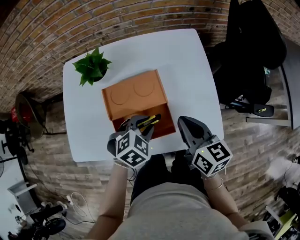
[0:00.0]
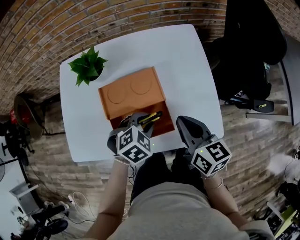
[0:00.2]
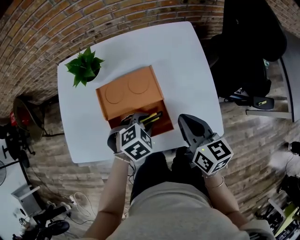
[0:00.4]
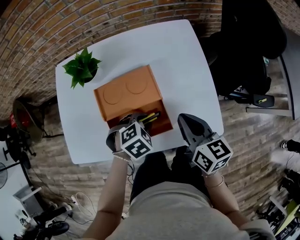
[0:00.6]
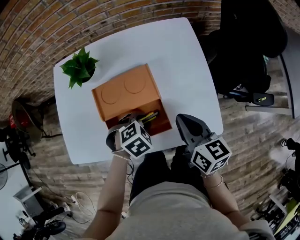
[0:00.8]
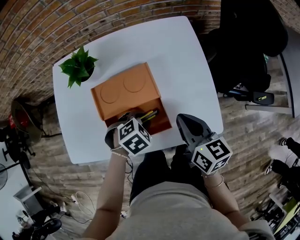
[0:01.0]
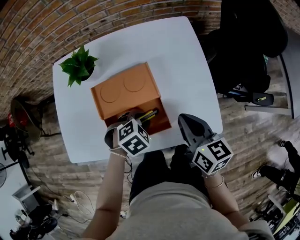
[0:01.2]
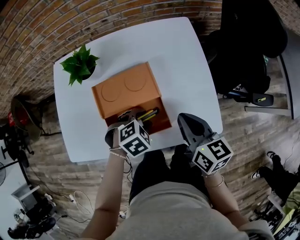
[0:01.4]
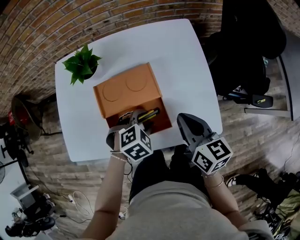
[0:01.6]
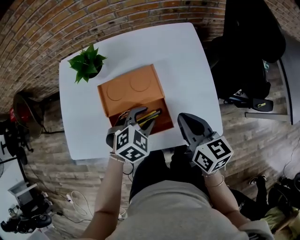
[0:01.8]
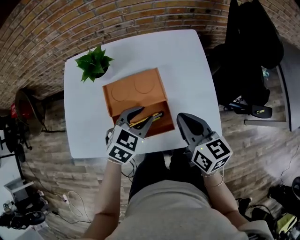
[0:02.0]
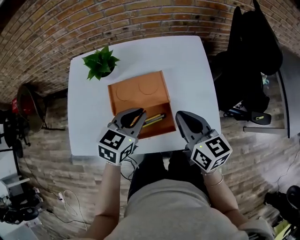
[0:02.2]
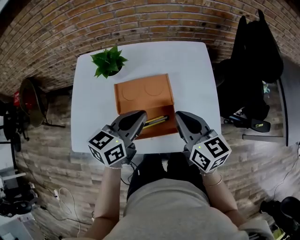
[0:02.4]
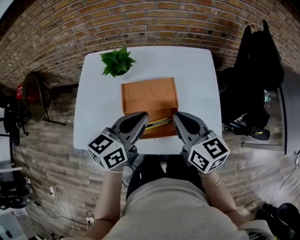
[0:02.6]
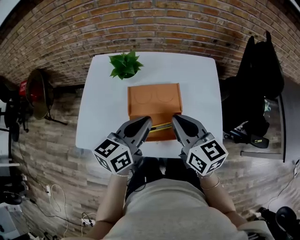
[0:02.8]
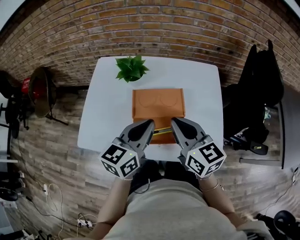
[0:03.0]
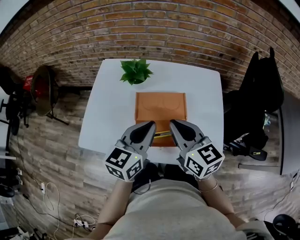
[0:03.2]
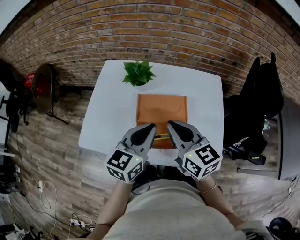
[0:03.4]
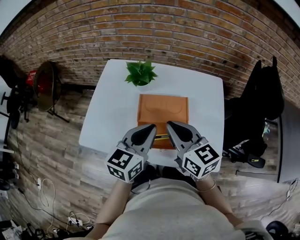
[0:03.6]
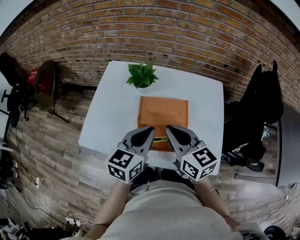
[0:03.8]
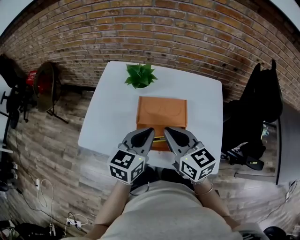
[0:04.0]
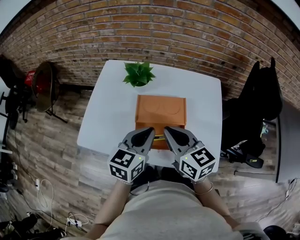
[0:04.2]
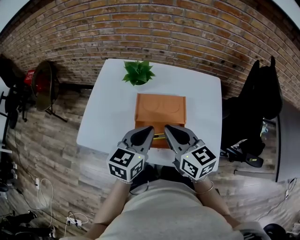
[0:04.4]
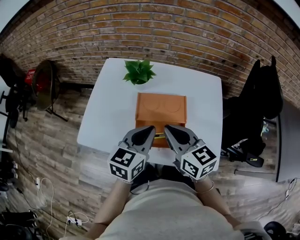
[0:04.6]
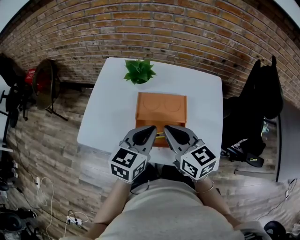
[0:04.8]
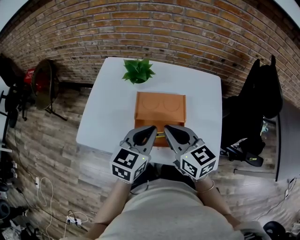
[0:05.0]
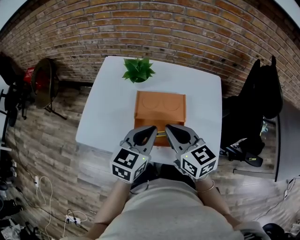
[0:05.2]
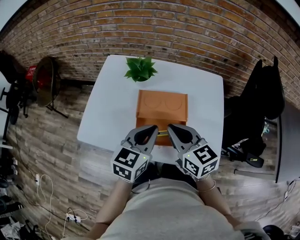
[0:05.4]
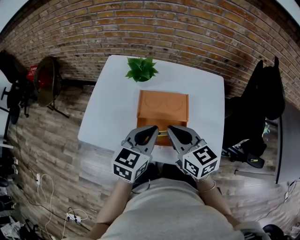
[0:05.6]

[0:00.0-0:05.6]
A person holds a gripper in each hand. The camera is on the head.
0:00.0 to 0:01.4: The left gripper moves downward, roughly 5 cm.
0:01.4 to 0:02.8: The left gripper shifts approximately 20 cm upward, points its fingers roughly 60 degrees further upward, and closes its fingers, while the right gripper shifts some 15 cm upward and to the left, and turns by some 20 degrees.
0:02.8 to 0:04.2: The right gripper moves to the left, about 5 cm.
0:04.2 to 0:05.6: The grippers move only a little.

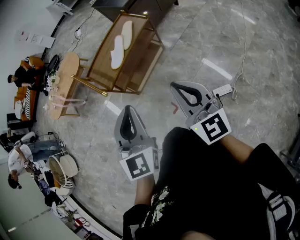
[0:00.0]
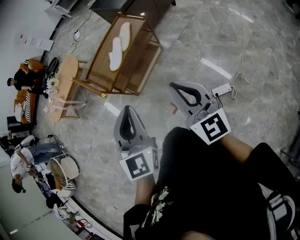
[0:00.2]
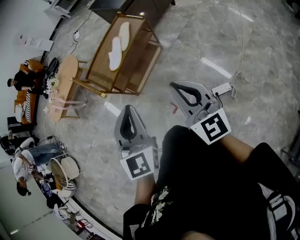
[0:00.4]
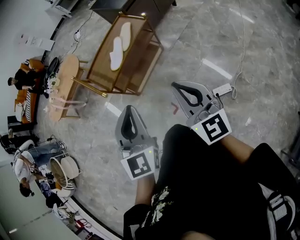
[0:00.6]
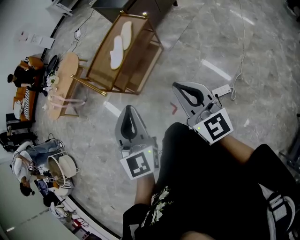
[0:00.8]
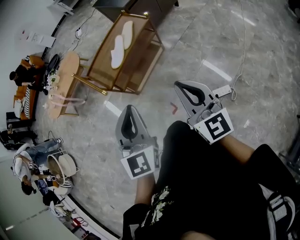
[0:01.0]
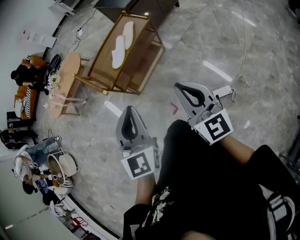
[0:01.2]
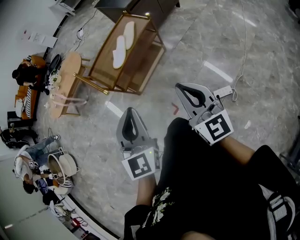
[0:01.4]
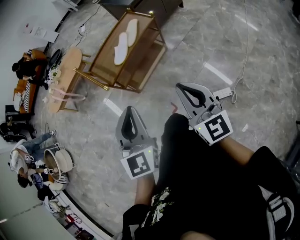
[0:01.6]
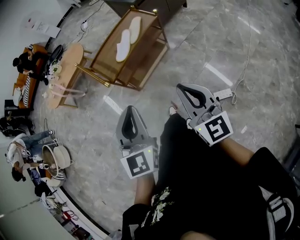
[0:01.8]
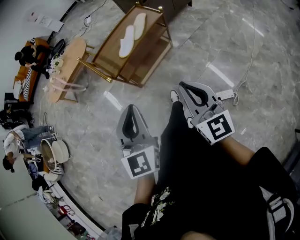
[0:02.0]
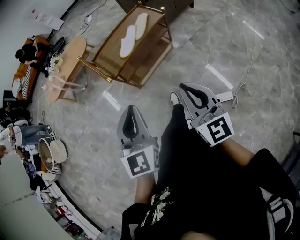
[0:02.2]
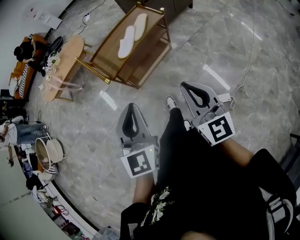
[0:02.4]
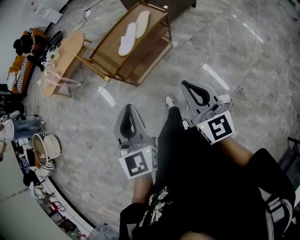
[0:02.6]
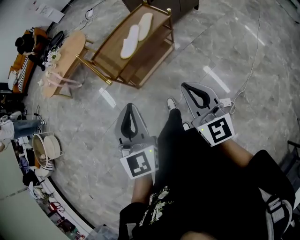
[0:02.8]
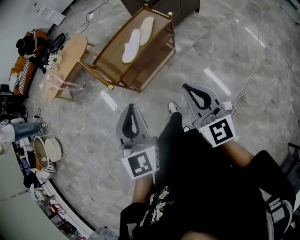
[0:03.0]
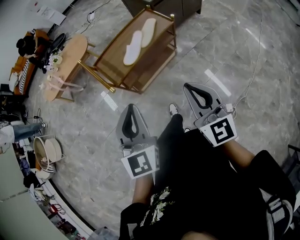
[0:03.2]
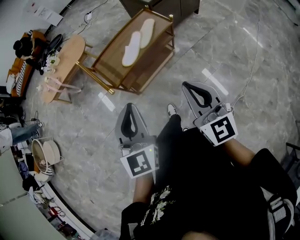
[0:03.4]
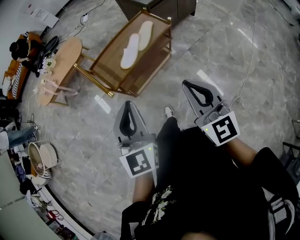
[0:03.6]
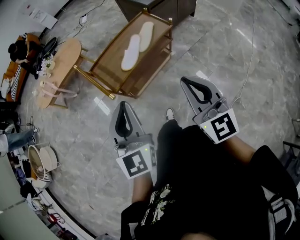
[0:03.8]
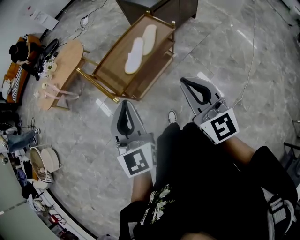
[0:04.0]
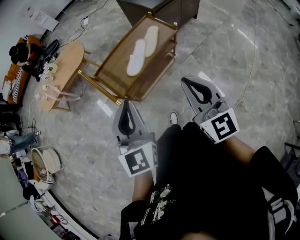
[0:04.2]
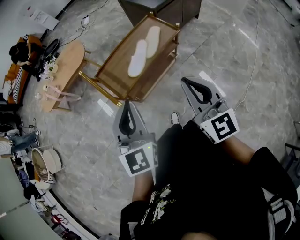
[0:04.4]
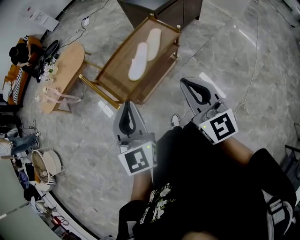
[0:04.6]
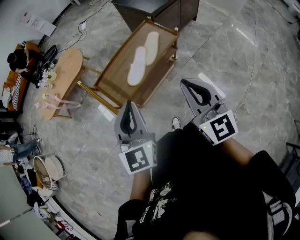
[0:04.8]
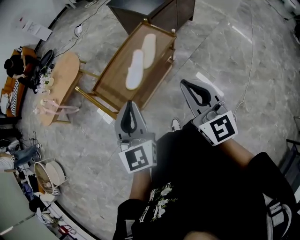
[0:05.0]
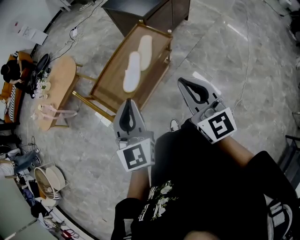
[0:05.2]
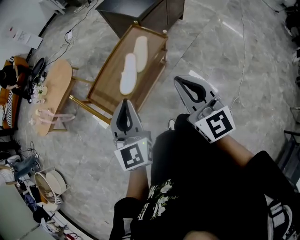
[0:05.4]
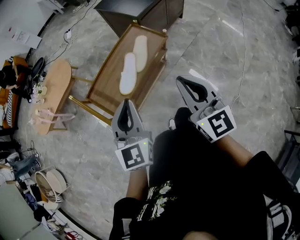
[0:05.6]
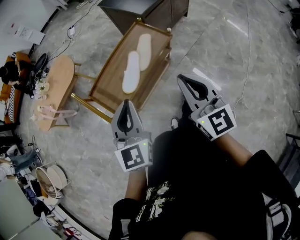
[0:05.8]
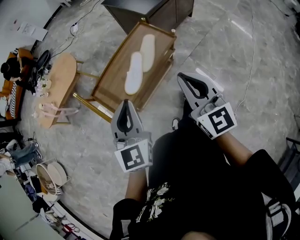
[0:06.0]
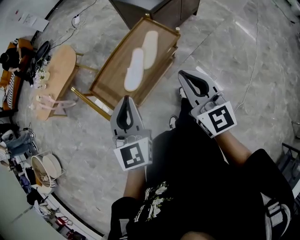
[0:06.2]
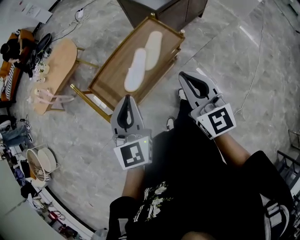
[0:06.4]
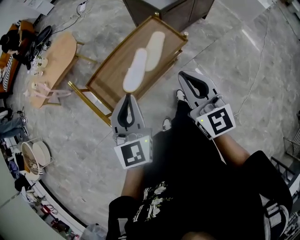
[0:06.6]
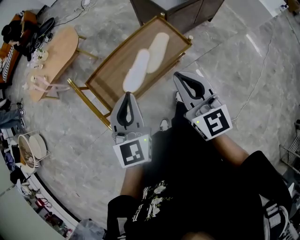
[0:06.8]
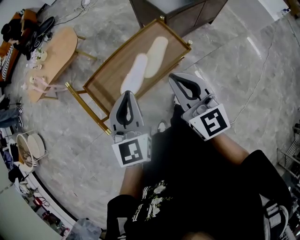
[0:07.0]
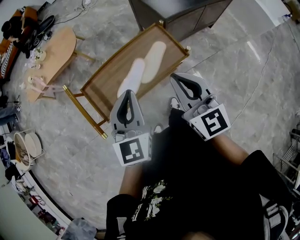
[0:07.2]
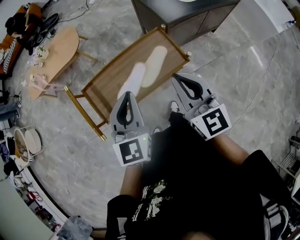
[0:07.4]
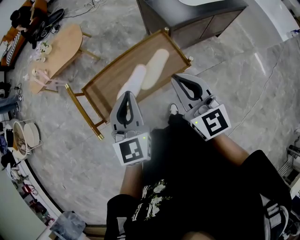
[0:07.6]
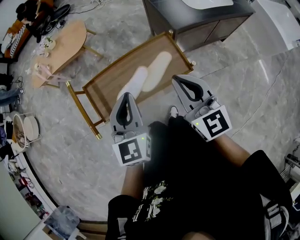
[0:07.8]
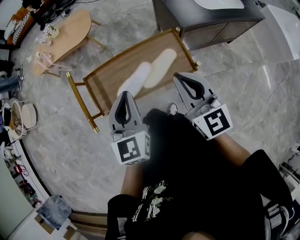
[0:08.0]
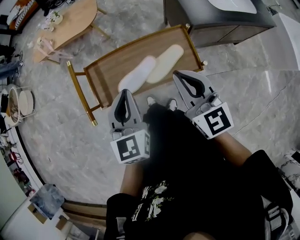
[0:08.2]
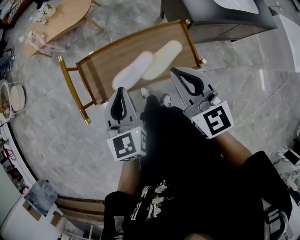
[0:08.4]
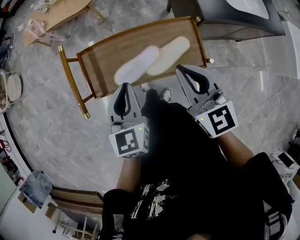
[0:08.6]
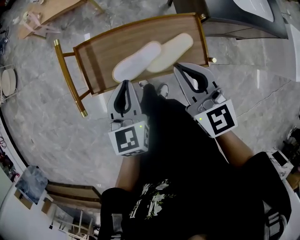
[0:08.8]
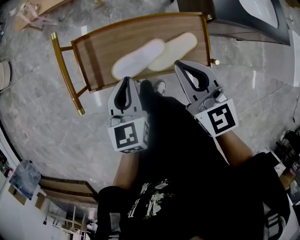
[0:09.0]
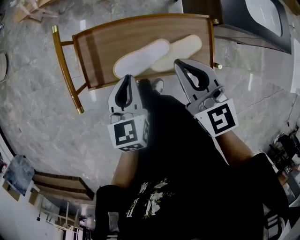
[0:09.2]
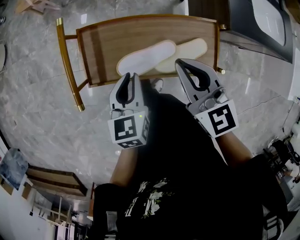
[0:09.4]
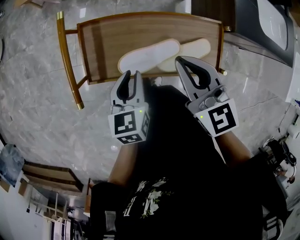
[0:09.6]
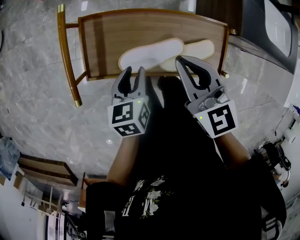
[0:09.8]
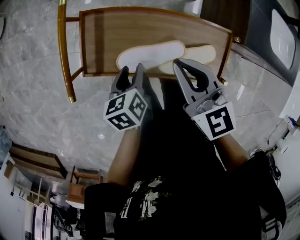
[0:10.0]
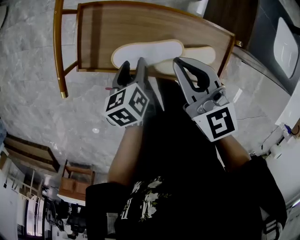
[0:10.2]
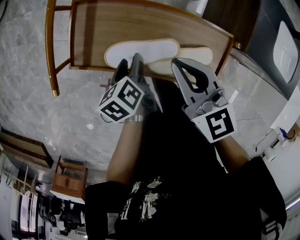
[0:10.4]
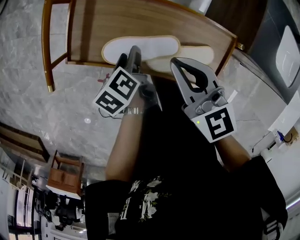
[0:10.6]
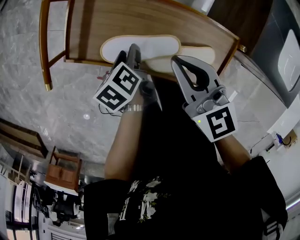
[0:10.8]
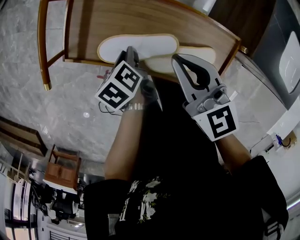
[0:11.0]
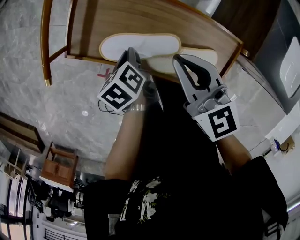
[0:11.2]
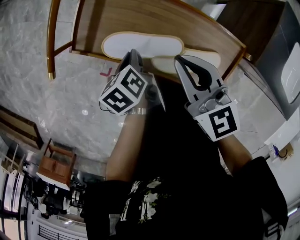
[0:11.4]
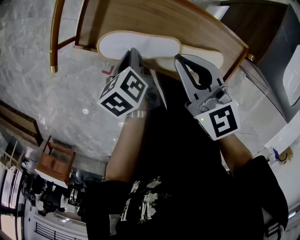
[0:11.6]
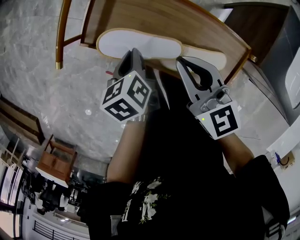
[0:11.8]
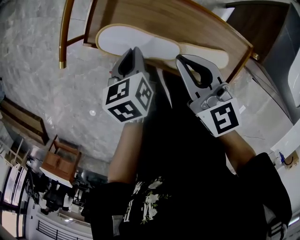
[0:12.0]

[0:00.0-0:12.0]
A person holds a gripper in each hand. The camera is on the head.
0:00.0 to 0:01.6: The grippers make only small movements.
0:01.6 to 0:03.0: Both grippers travel together forward, approximately 5 cm.
0:03.0 to 0:04.4: The grippers both shift forward by approximately 15 cm.
0:04.4 to 0:06.0: Both grippers travel together forward, approximately 10 cm.
0:06.0 to 0:07.6: The right gripper shifts some 20 cm forward, and swivels roughly 20 degrees, while the left gripper is displaced forward and to the right by roughly 15 cm.
0:07.6 to 0:09.0: The right gripper travels forward, downward and to the left by about 15 cm, and turns by roughly 30 degrees, while the left gripper goes some 15 cm downward and to the left, and swivels roughly 30 degrees.
0:09.0 to 0:10.4: The left gripper travels downward by approximately 15 cm, rolls counterclockwise, seen from behind, by some 50 degrees, and opens. The right gripper is displaced downward and forward by approximately 10 cm, and swivels about 20 degrees.
0:10.4 to 0:12.0: The left gripper moves roughly 5 cm, rotates some 20 degrees, and closes.

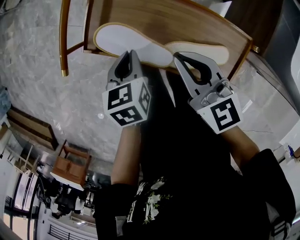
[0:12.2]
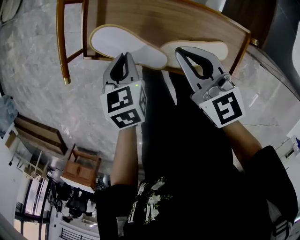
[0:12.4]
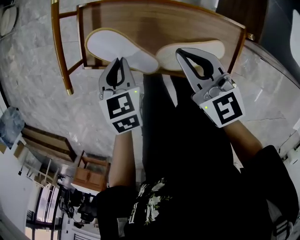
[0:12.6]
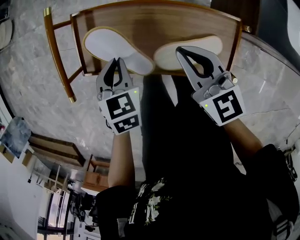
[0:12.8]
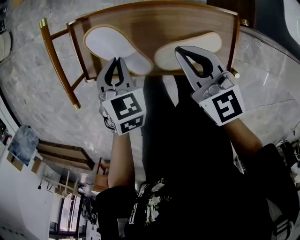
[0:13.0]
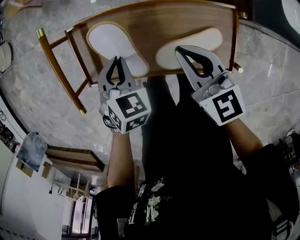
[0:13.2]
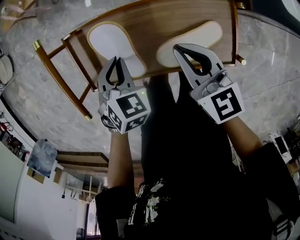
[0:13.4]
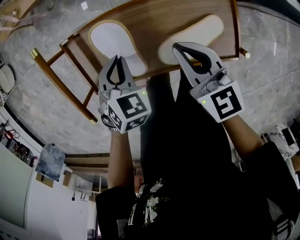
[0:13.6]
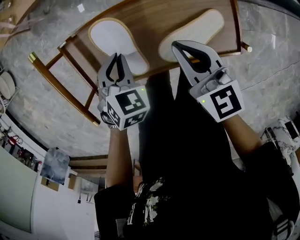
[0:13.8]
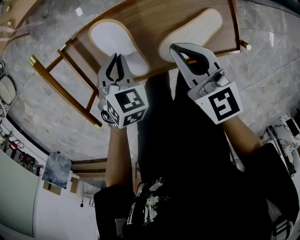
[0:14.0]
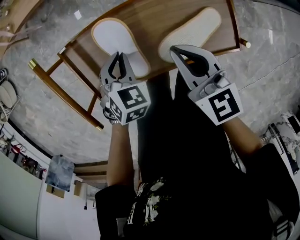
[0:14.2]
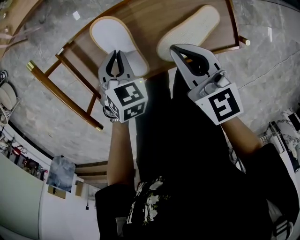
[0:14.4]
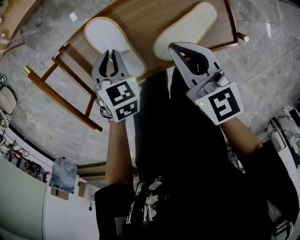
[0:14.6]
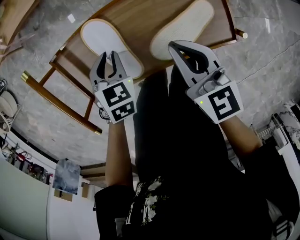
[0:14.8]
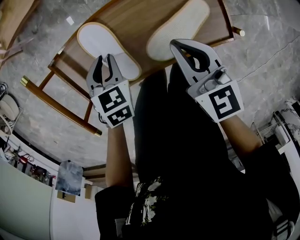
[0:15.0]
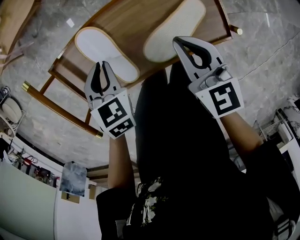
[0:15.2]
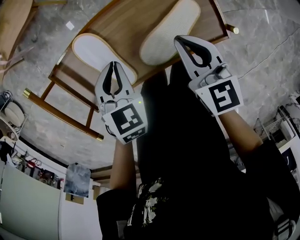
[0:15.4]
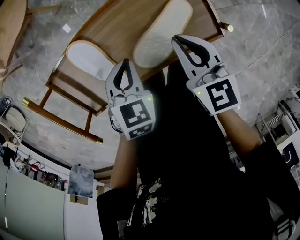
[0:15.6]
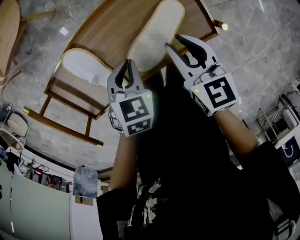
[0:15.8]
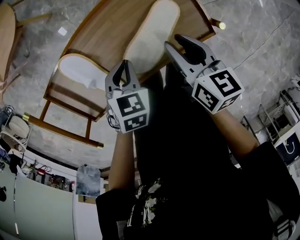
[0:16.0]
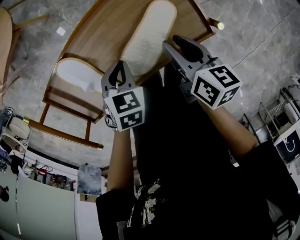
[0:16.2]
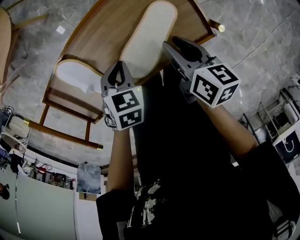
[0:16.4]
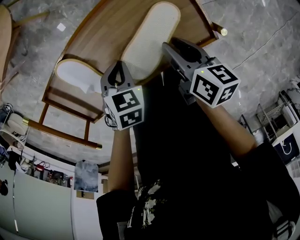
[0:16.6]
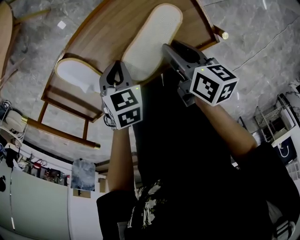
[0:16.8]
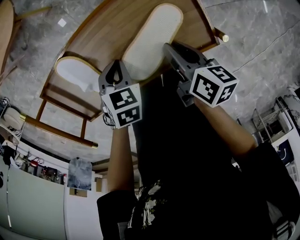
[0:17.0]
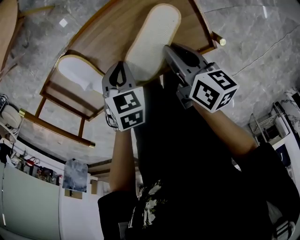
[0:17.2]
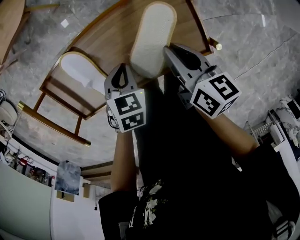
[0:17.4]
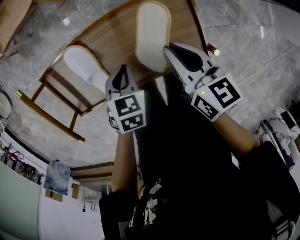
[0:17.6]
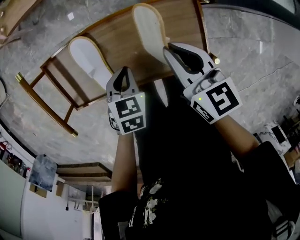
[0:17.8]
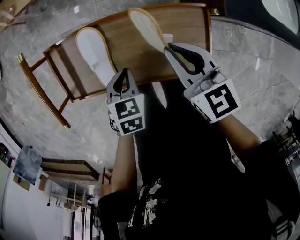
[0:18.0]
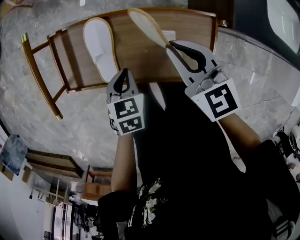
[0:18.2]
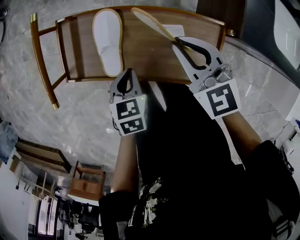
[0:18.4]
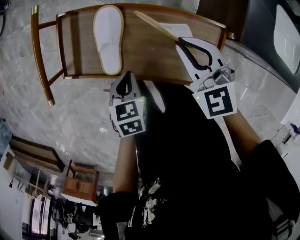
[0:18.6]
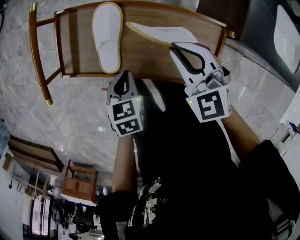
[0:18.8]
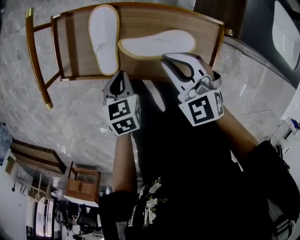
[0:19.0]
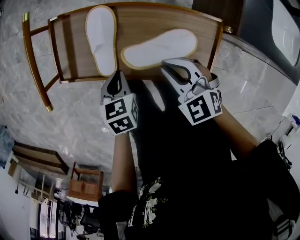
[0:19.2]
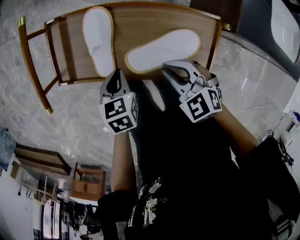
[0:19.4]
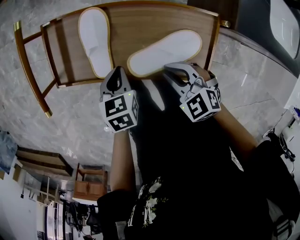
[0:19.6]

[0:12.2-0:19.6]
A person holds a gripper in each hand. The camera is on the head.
0:12.2 to 0:13.6: The right gripper moves roughly 5 cm, and rotates some 30 degrees; the left gripper changes place by some 10 cm, and rotates around the line of its fingers by roughly 60 degrees, clockwise from behind.
0:13.6 to 0:15.2: The right gripper shifts by some 5 cm.
0:15.2 to 0:16.6: The left gripper goes roughly 15 cm to the right and downward, and changes its angle by approximately 20 degrees; the right gripper travels downward and to the right by roughly 15 cm, rotates around the line of its fingers by approximately 50 degrees, clockwise from behind, and opens up.
0:16.6 to 0:18.2: The right gripper goes roughly 15 cm upward, rolls counterclockwise, seen from behind, by some 60 degrees, and closes its fingers. The left gripper goes some 5 cm upward, and changes its angle by about 40 degrees.
0:18.2 to 0:19.6: The right gripper is displaced downward and backward by some 15 cm, and swivels some 30 degrees.
